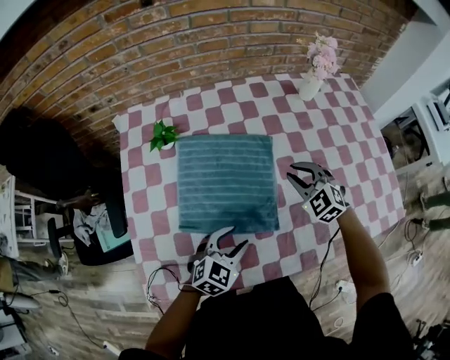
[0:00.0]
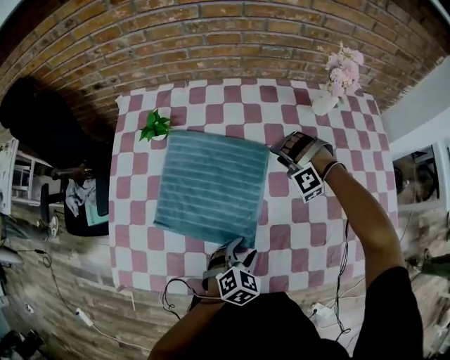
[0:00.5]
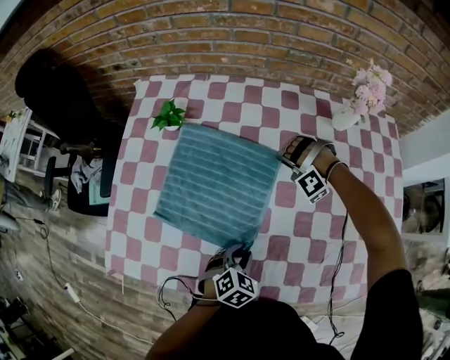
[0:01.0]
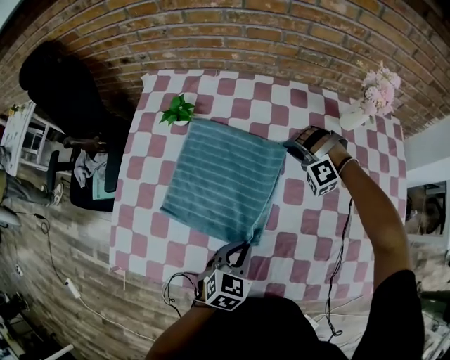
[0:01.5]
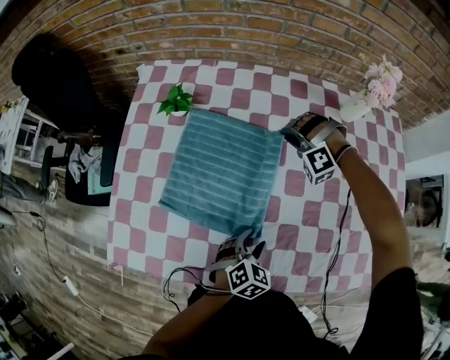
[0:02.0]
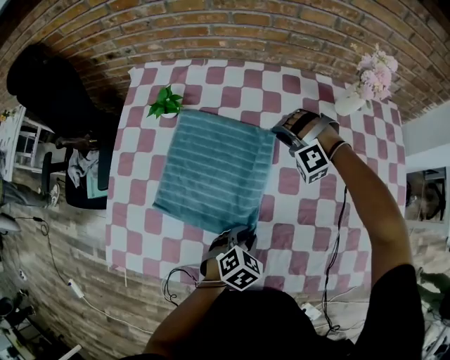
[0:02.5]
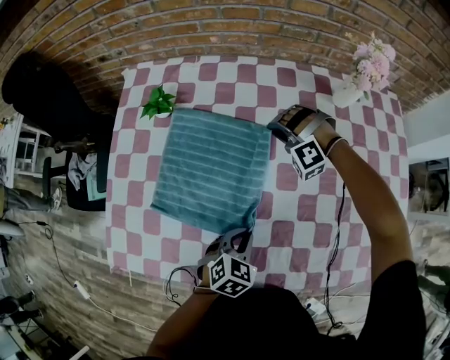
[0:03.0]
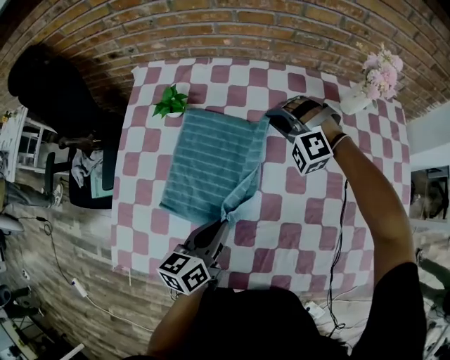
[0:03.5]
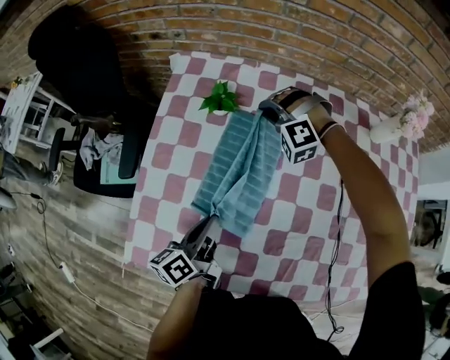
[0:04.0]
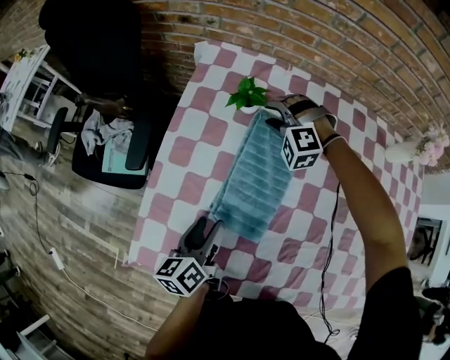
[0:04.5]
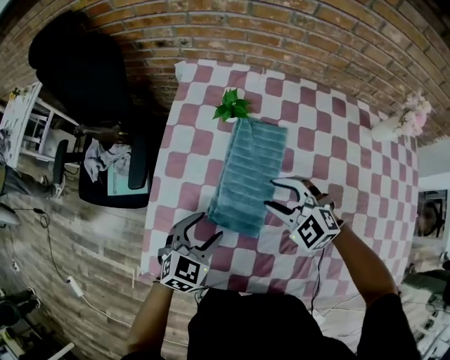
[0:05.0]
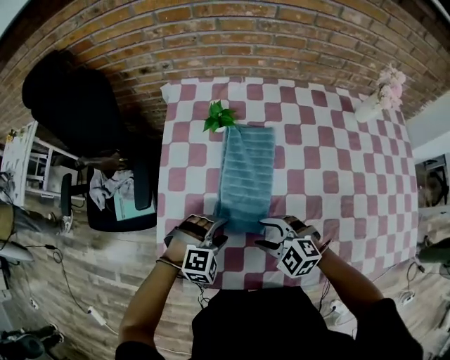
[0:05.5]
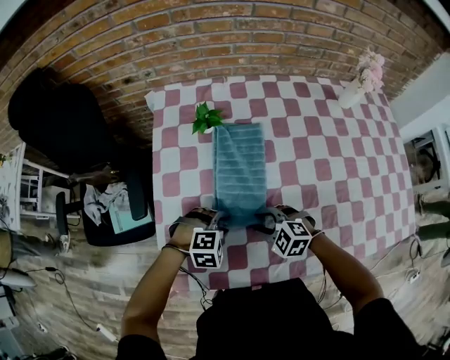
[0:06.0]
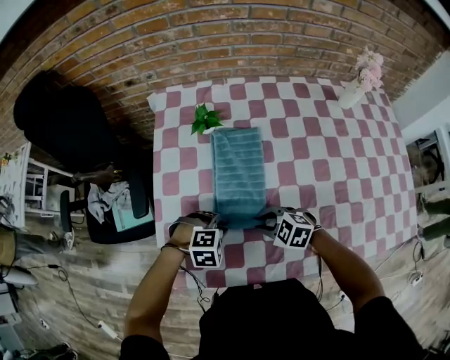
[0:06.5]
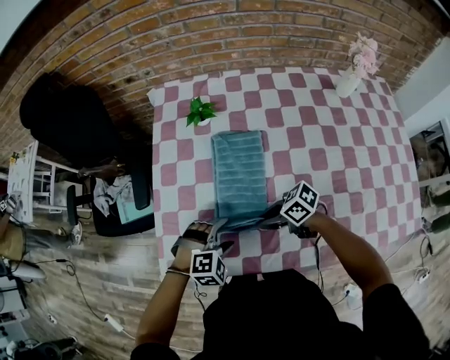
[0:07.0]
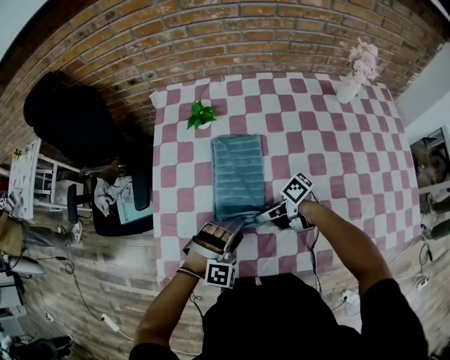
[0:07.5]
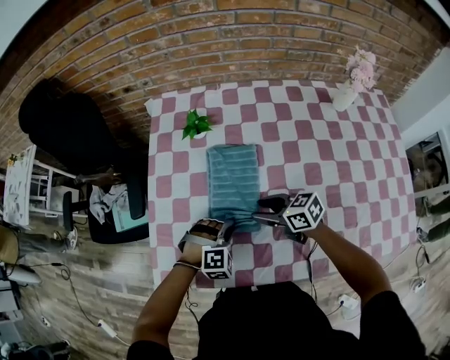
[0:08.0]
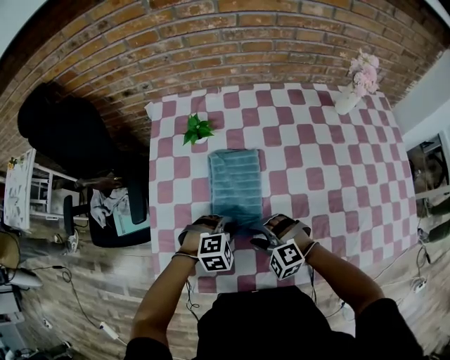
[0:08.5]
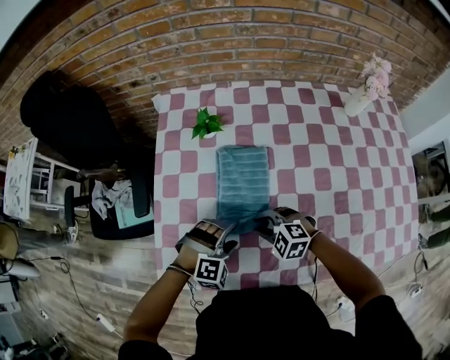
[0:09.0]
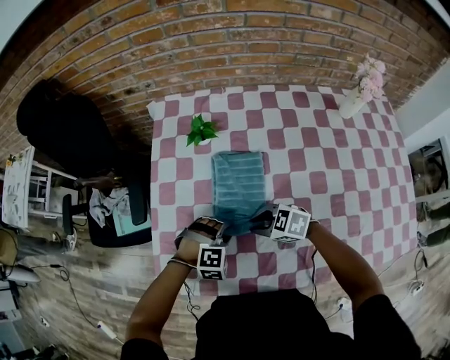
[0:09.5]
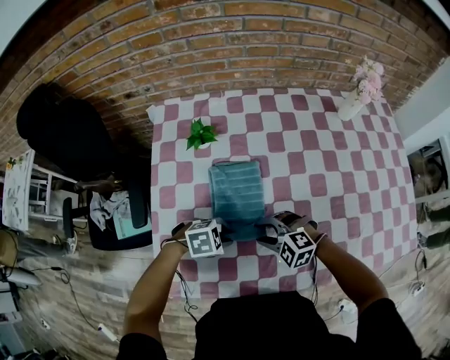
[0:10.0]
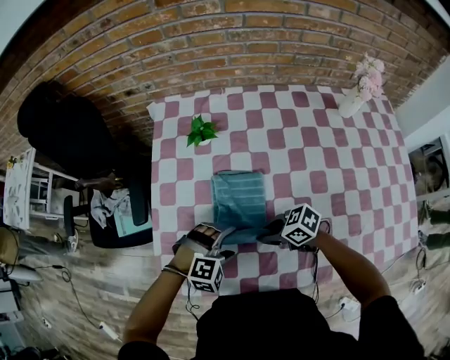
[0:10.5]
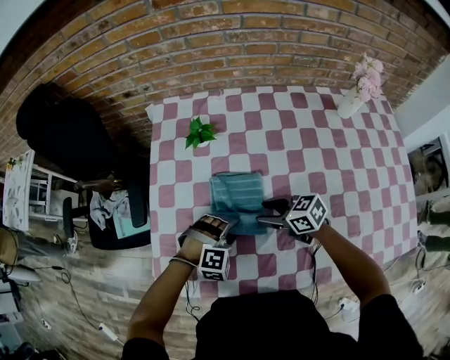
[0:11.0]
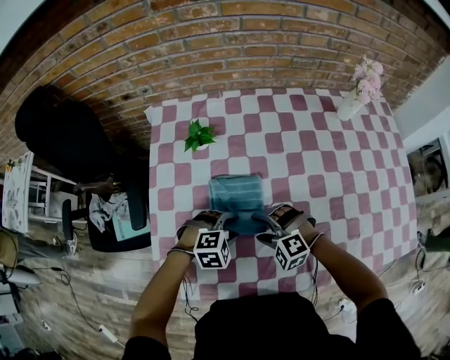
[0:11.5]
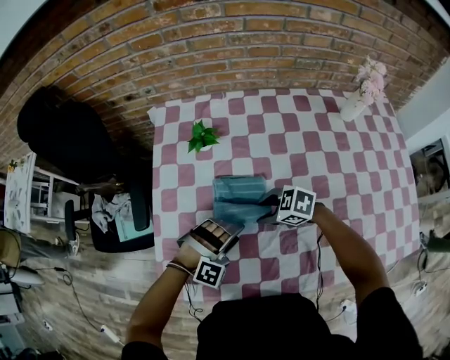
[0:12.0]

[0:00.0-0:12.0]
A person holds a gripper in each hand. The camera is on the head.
0:00.0 to 0:02.0: The right gripper travels forward by roughly 15 cm, and twists roughly 70 degrees counterclockwise, seen from behind. Meanwhile the left gripper moves to the right and downward, approximately 15 cm, changes its angle by about 30 degrees, and closes and opens again.
0:02.0 to 0:04.0: The two grippers go approximately 25 cm to the left. The left gripper rotates around the line of its fingers by roughly 80 degrees, counterclockwise from behind, and closes its fingers.
0:04.0 to 0:06.0: The right gripper moves up and down over about 10 cm, changing direction 2 times, rolls clockwise, seen from behind, by roughly 60 degrees, and opens up, while the left gripper heads downward, covering some 10 cm, and rotates around the line of its fingers by some 110 degrees, clockwise from behind.
0:06.0 to 0:08.0: The right gripper ends up some 10 cm from where it was, and twists some 40 degrees clockwise, seen from behind. Meanwhile the left gripper moves approximately 5 cm.
0:08.0 to 0:10.0: The right gripper twists about 60 degrees counterclockwise, seen from behind; the left gripper rotates some 40 degrees, and opens and closes again.
0:10.0 to 0:12.0: The left gripper turns by roughly 60 degrees, and opens its fingers. Meanwhile the right gripper moves roughly 10 cm, and rotates roughly 40 degrees.

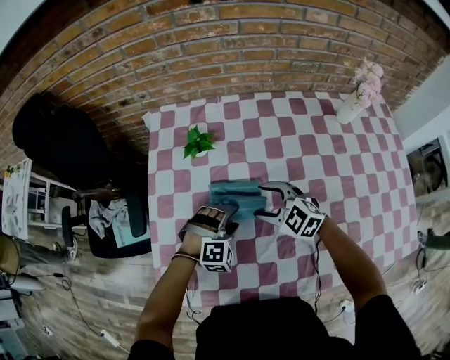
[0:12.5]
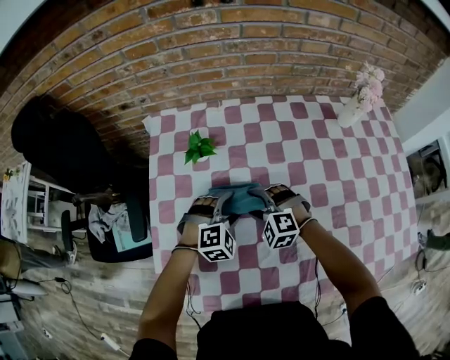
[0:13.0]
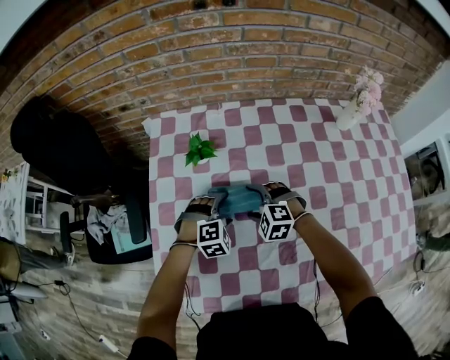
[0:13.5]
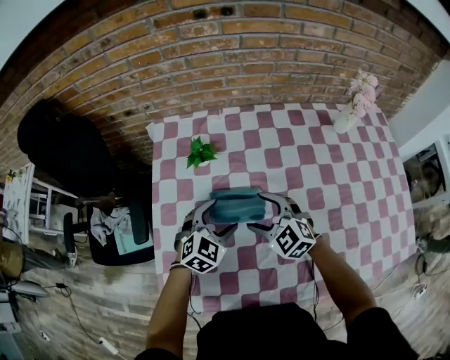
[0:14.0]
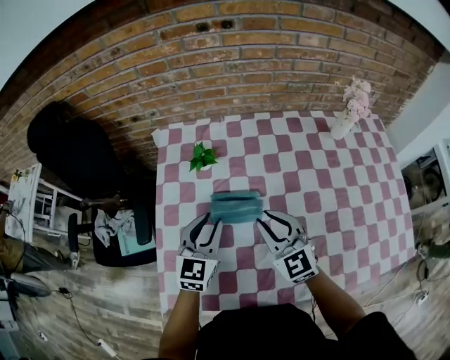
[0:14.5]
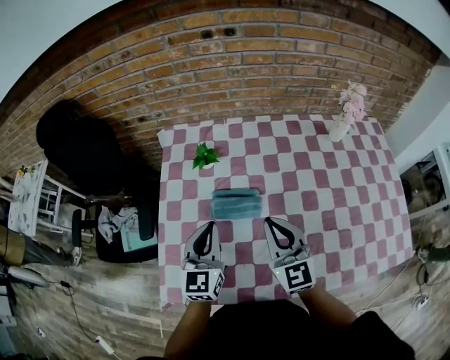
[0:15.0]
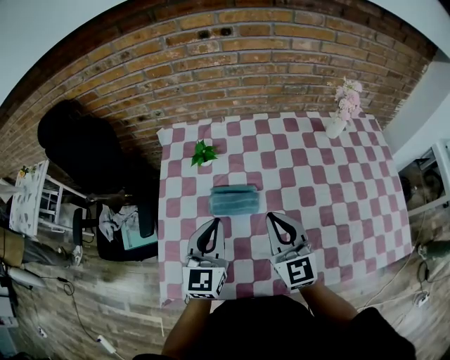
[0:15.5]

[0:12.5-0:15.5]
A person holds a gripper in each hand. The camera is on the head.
0:12.5 to 0:14.0: The right gripper travels downward and back again, some 5 cm each way, while the left gripper moves upward, roughly 5 cm, and rotates some 40 degrees.
0:14.0 to 0:15.5: The two grippers go some 15 cm upward and backward. The right gripper turns by roughly 40 degrees, and closes its fingers. The left gripper tips its fingers upward by some 30 degrees, and closes its fingers.

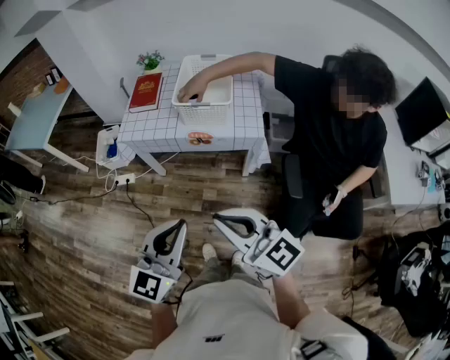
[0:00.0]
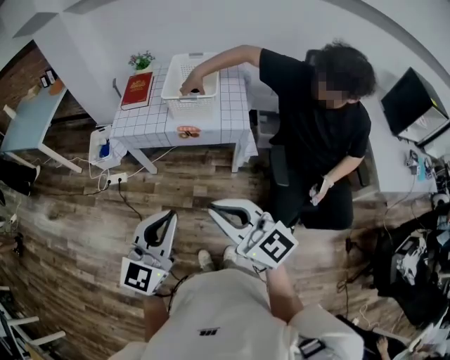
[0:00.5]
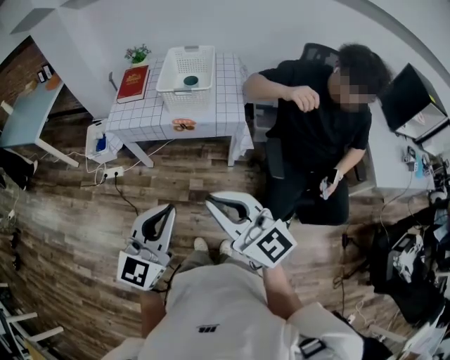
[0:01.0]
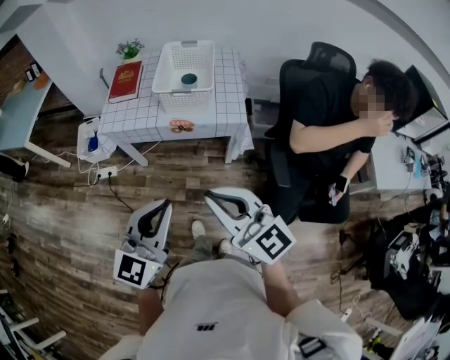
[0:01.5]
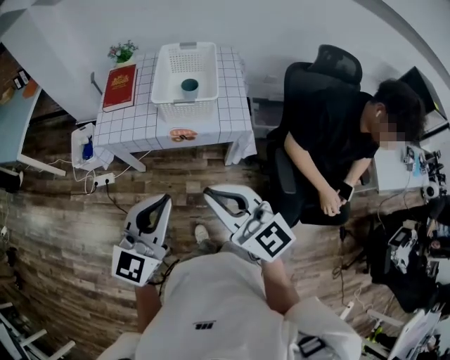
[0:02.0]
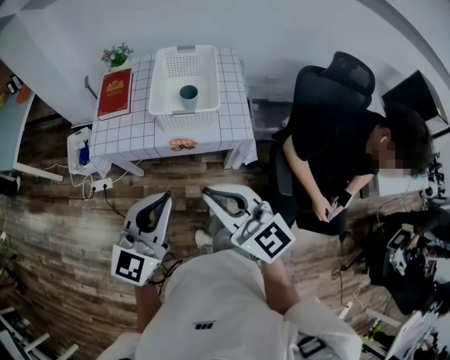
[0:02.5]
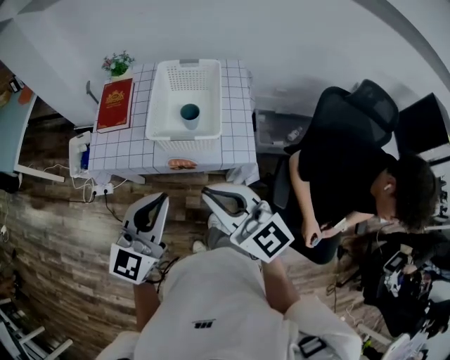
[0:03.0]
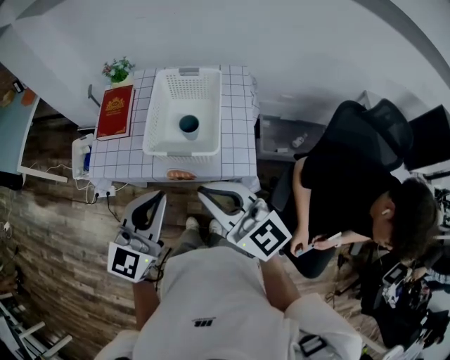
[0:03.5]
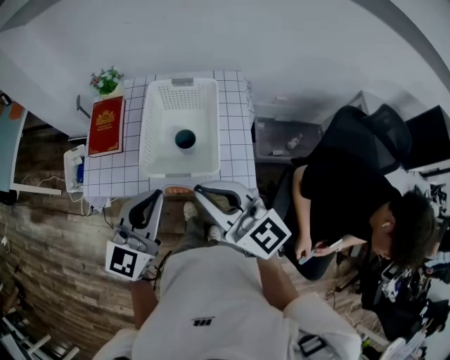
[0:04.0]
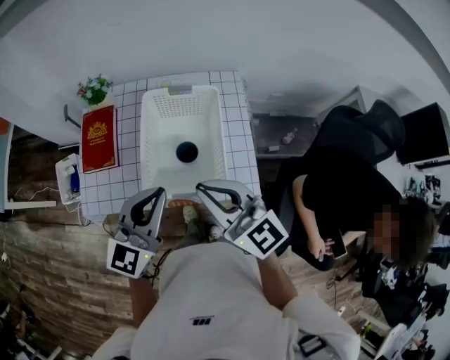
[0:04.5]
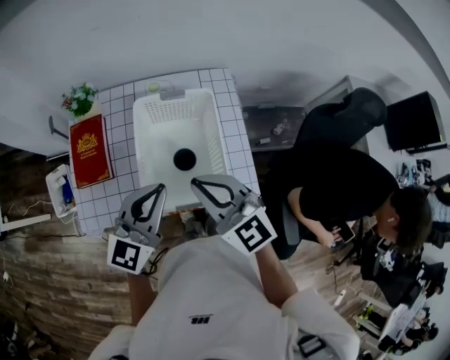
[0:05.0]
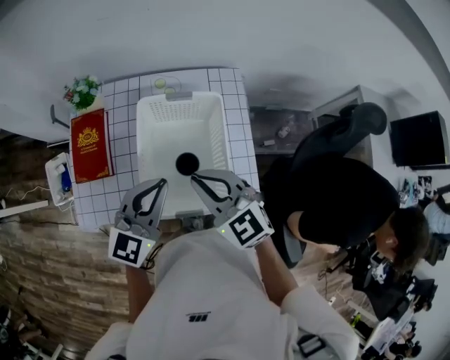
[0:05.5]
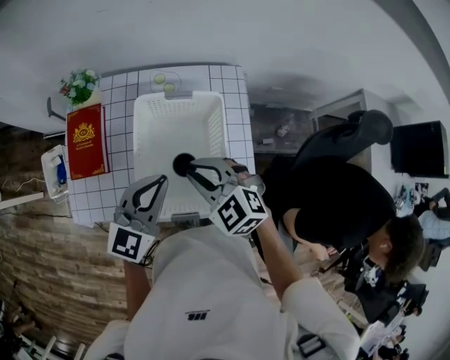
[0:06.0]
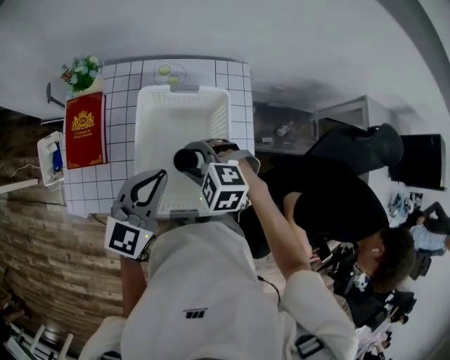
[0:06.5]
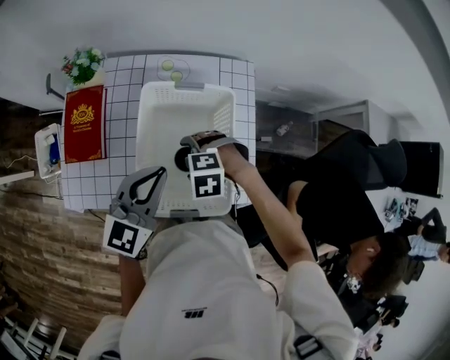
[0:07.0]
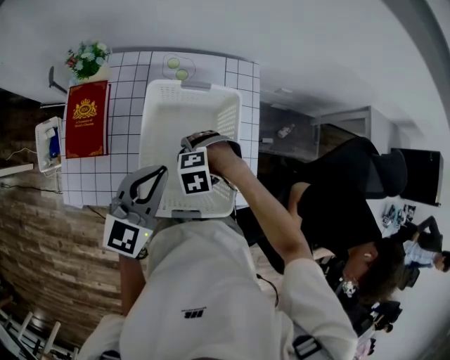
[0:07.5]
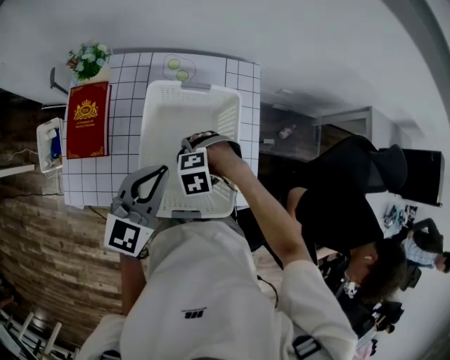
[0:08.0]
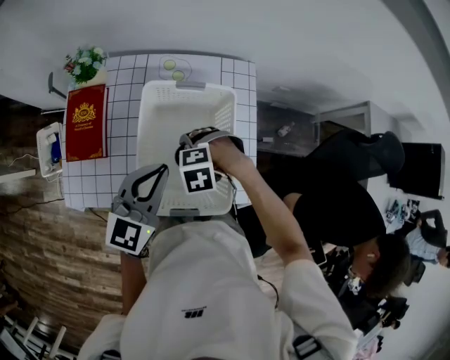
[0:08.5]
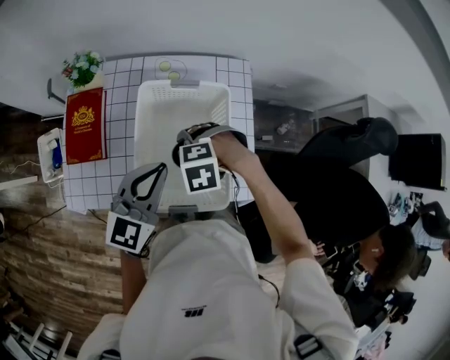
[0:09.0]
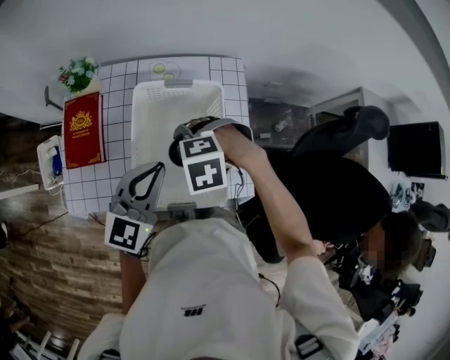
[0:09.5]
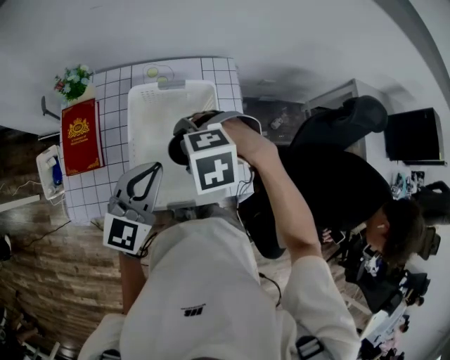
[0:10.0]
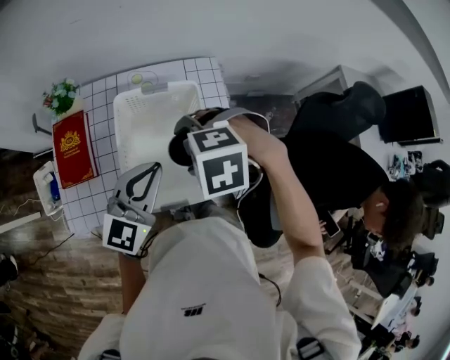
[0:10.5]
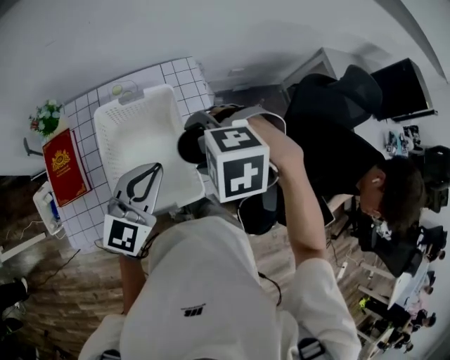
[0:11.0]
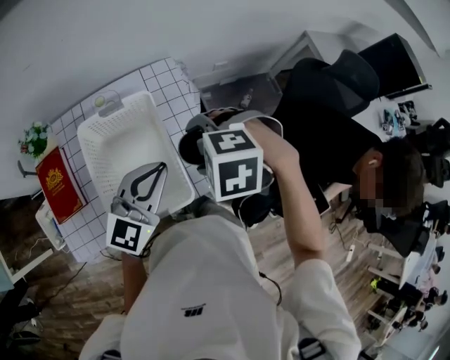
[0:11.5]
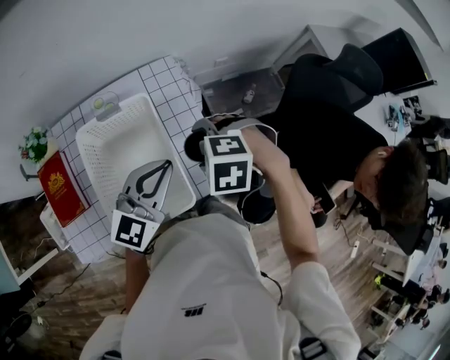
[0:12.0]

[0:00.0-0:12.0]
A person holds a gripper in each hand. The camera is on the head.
0:00.0 to 0:02.0: Both grippers travel together forward, about 10 cm.
0:02.0 to 0:04.0: Both grippers move forward, approximately 30 cm.
0:04.0 to 0:06.0: The grippers both shift forward and downward by about 25 cm. The right gripper angles its fingers downward, by approximately 40 degrees.
0:06.0 to 0:08.0: The right gripper travels downward by about 15 cm, tilts its fingers some 50 degrees downward, and opens its fingers.
0:08.0 to 0:10.0: The right gripper shifts approximately 15 cm upward.
0:10.0 to 0:12.0: The left gripper moves about 15 cm, and turns by some 20 degrees. The right gripper moves about 5 cm upward and comes back, and turns by about 30 degrees.
